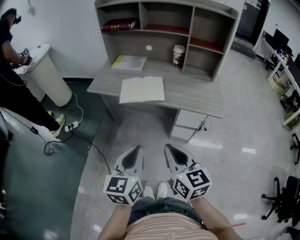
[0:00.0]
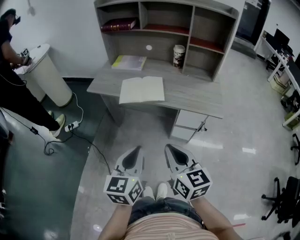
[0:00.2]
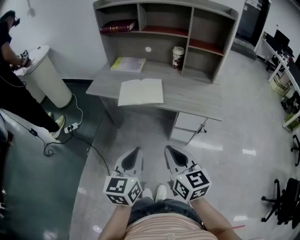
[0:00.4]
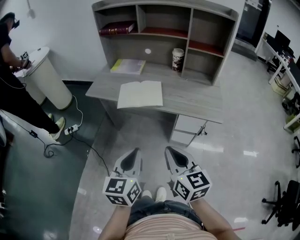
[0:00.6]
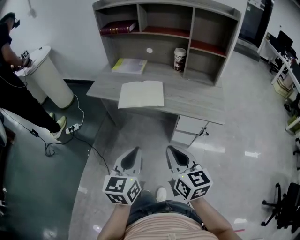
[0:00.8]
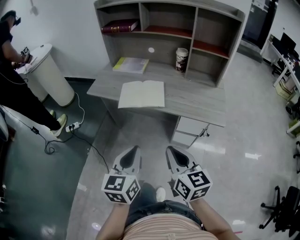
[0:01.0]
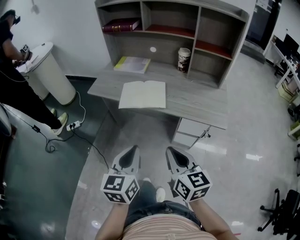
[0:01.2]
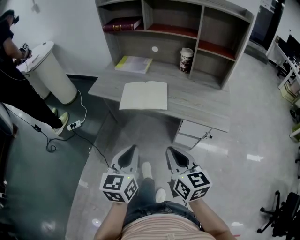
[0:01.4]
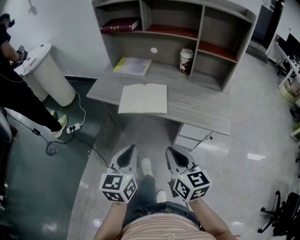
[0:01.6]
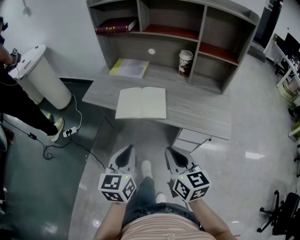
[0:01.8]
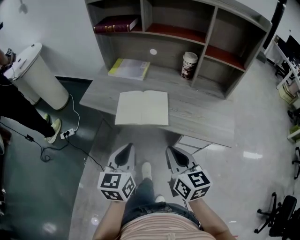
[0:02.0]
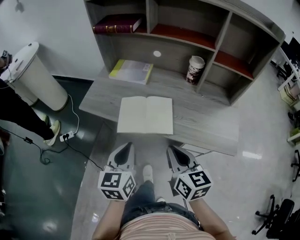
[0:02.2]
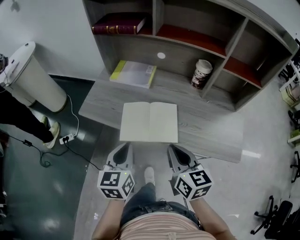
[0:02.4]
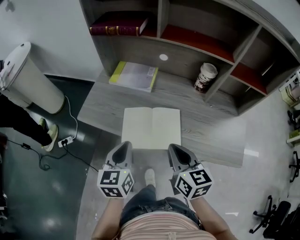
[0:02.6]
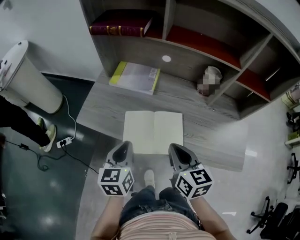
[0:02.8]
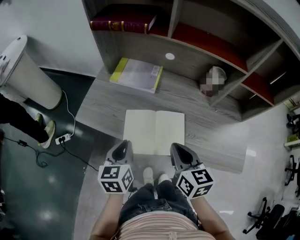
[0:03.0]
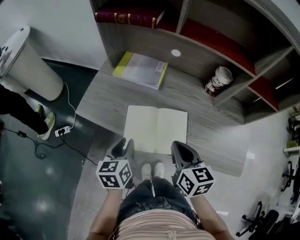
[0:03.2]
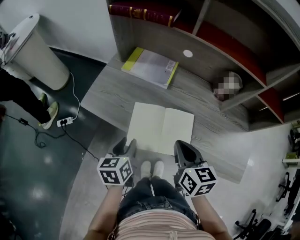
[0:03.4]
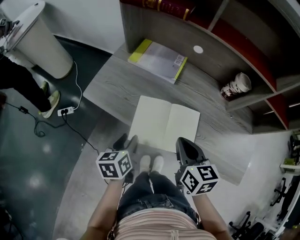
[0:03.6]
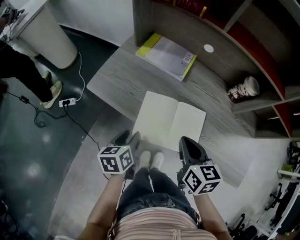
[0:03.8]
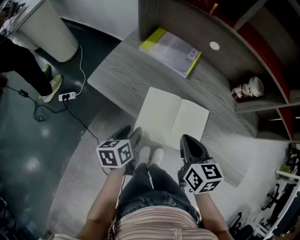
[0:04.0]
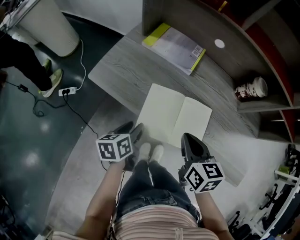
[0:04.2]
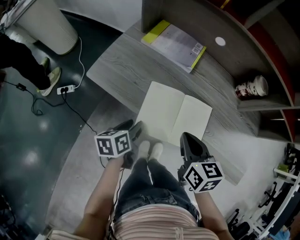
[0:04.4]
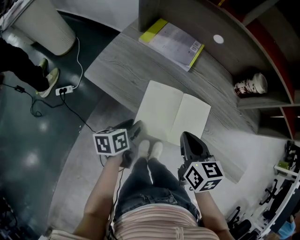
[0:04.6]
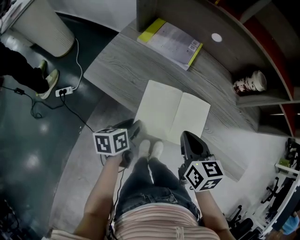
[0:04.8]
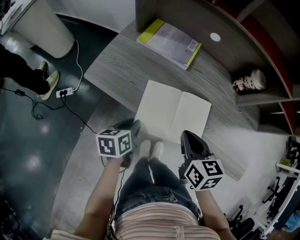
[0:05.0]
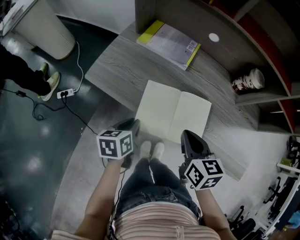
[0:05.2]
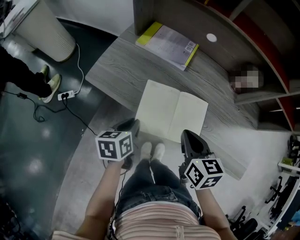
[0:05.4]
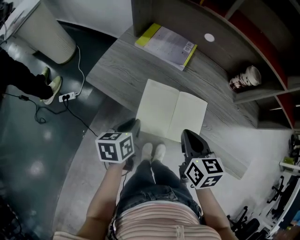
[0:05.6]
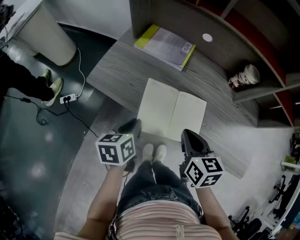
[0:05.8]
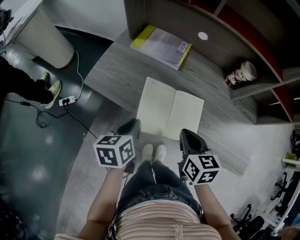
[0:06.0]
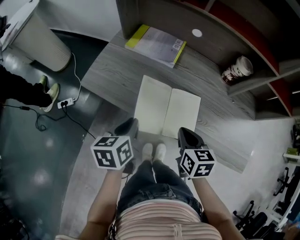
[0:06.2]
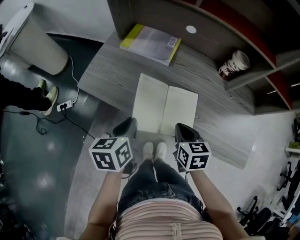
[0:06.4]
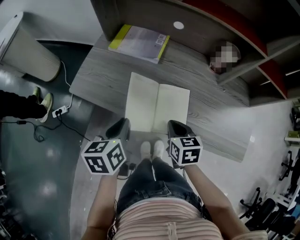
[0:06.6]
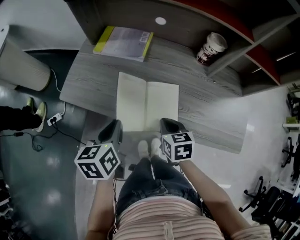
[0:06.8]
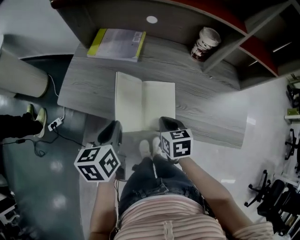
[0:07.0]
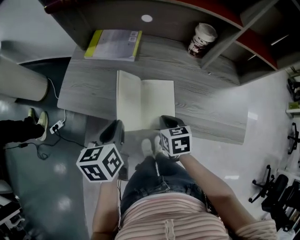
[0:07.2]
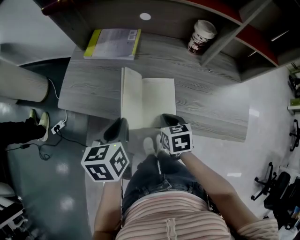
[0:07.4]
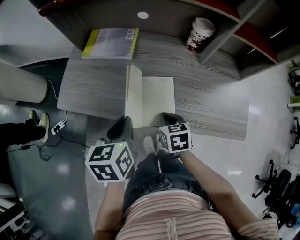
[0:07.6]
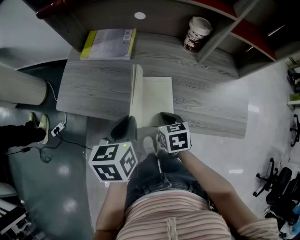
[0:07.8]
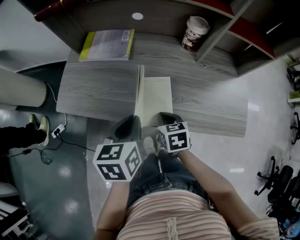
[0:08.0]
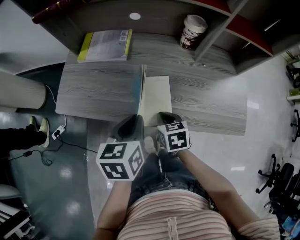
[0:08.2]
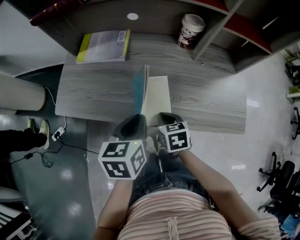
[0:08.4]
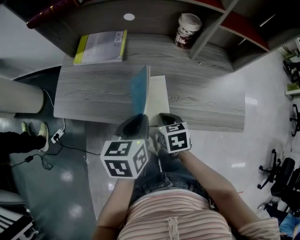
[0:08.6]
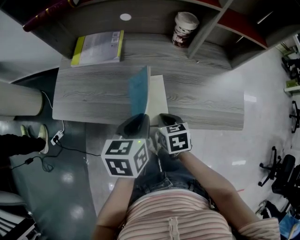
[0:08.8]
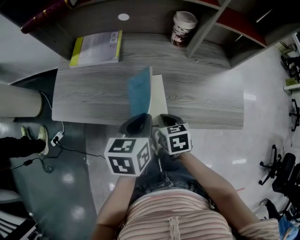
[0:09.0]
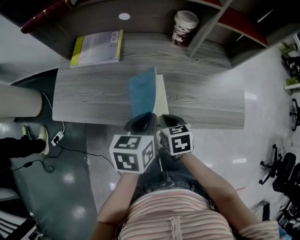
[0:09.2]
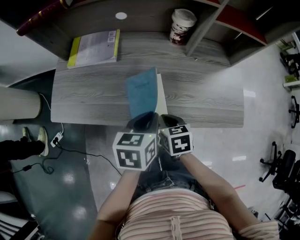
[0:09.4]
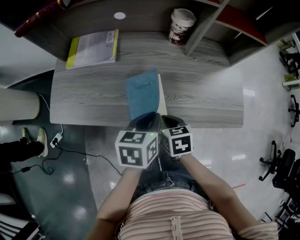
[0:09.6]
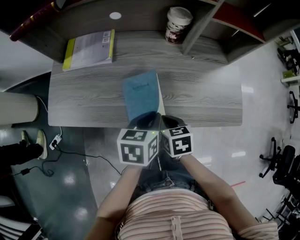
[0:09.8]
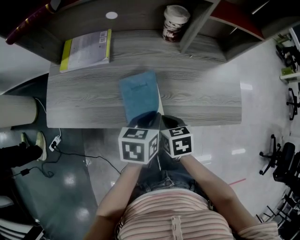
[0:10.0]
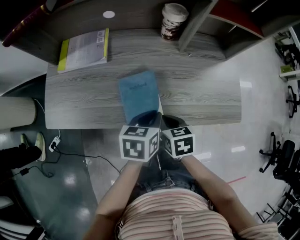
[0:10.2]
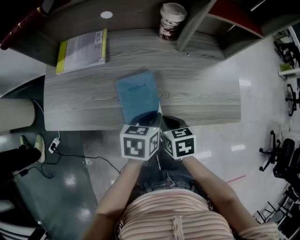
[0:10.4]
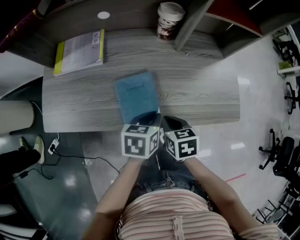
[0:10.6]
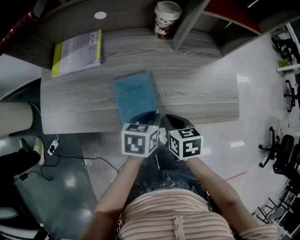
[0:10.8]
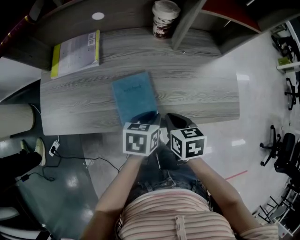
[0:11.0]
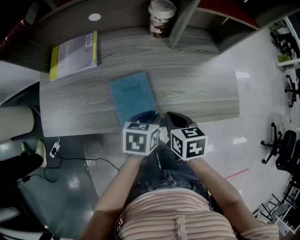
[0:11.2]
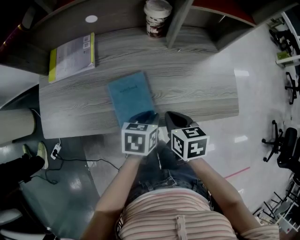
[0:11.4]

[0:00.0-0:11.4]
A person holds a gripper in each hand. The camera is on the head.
0:00.0 to 0:01.4: The two grippers go about 10 cm forward.
0:01.4 to 0:02.8: Both grippers move forward, some 30 cm.
0:02.8 to 0:04.2: The right gripper is displaced downward by about 5 cm, while the left gripper heads downward, covering about 15 cm, rotates roughly 40 degrees, and opens.
0:04.2 to 0:05.6: The left gripper closes up.
0:05.6 to 0:07.2: The left gripper is displaced upward and to the right by about 10 cm; the right gripper goes approximately 10 cm downward and to the right.
0:07.2 to 0:08.6: The left gripper is displaced to the right by approximately 10 cm.
0:08.6 to 0:10.0: The left gripper is displaced to the right and downward by some 10 cm.
0:10.0 to 0:11.4: The right gripper goes roughly 5 cm to the right; the left gripper goes about 5 cm downward.

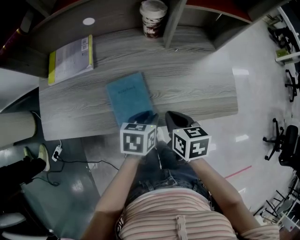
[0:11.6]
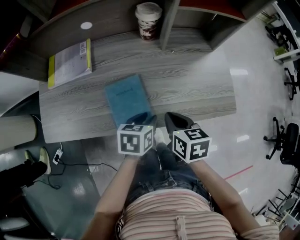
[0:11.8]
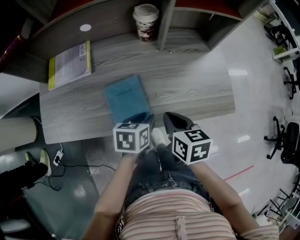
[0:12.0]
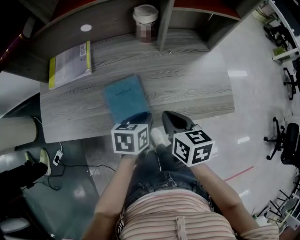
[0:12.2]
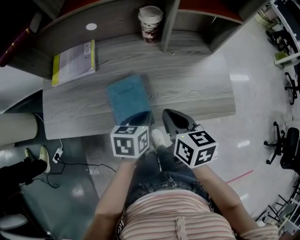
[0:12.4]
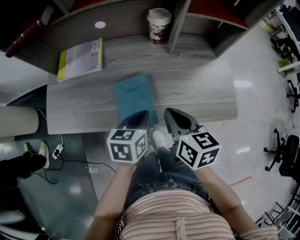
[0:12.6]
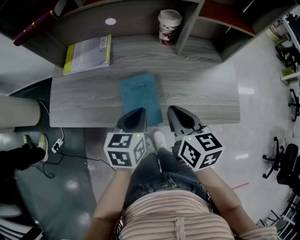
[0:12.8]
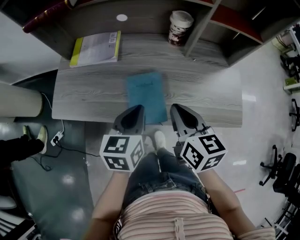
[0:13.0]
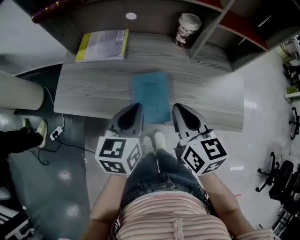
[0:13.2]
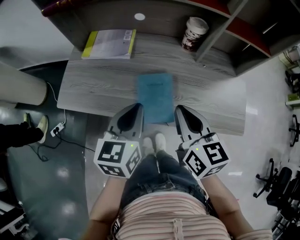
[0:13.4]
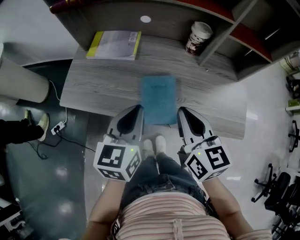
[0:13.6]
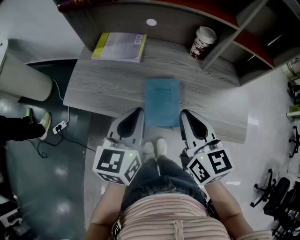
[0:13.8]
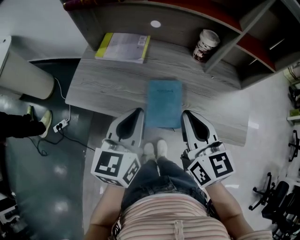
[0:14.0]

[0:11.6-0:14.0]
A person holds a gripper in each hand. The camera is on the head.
0:11.6 to 0:12.8: The right gripper moves upward, roughly 10 cm, and turns by about 20 degrees. The left gripper moves upward and to the left, about 10 cm, turns by roughly 20 degrees, and closes its fingers.
0:12.8 to 0:14.0: Both grippers travel together upward and to the left, some 15 cm. The left gripper swivels roughly 20 degrees, while the right gripper changes its angle by some 20 degrees.

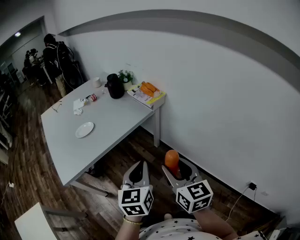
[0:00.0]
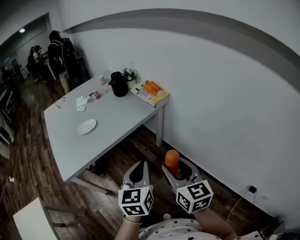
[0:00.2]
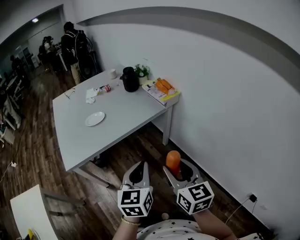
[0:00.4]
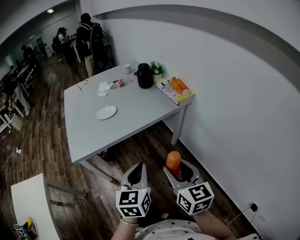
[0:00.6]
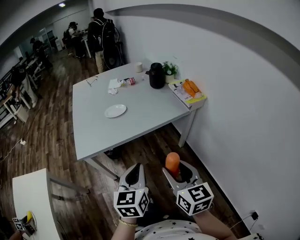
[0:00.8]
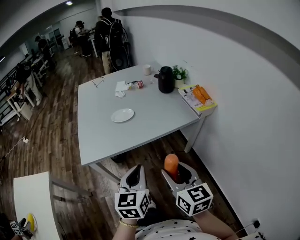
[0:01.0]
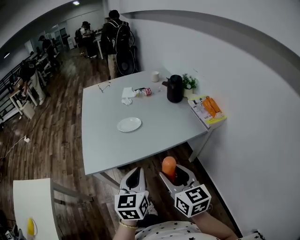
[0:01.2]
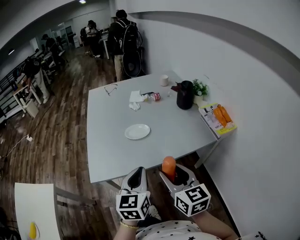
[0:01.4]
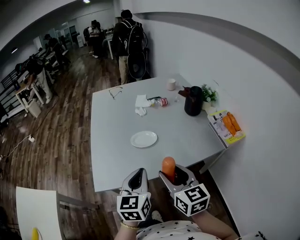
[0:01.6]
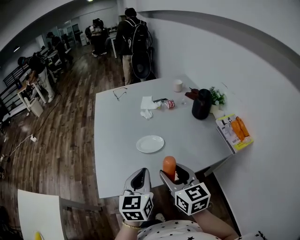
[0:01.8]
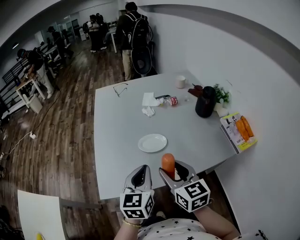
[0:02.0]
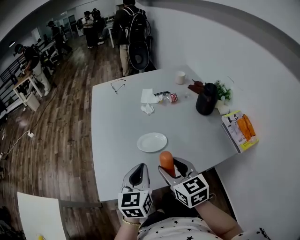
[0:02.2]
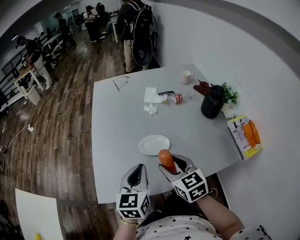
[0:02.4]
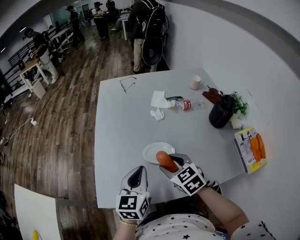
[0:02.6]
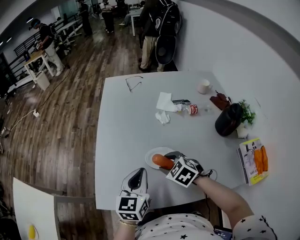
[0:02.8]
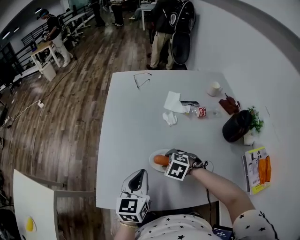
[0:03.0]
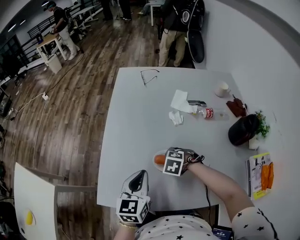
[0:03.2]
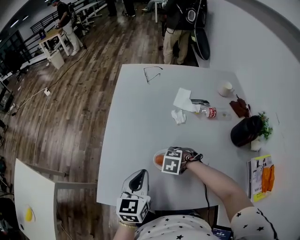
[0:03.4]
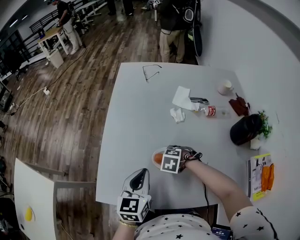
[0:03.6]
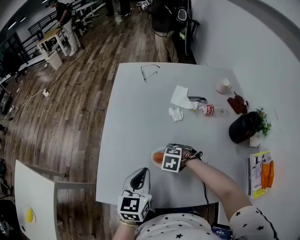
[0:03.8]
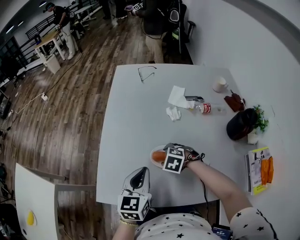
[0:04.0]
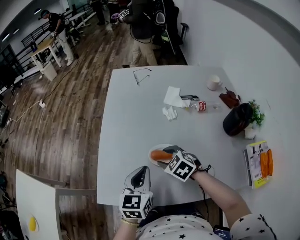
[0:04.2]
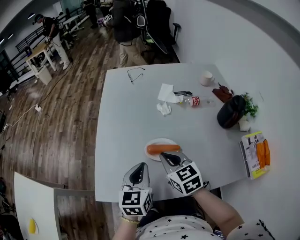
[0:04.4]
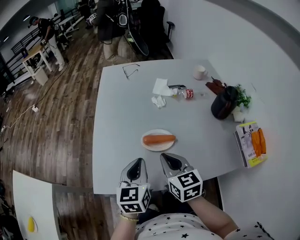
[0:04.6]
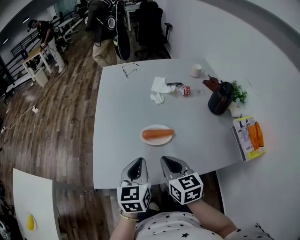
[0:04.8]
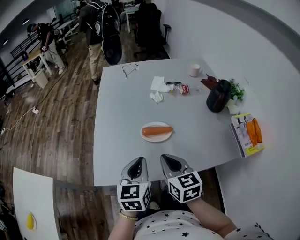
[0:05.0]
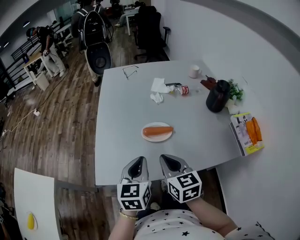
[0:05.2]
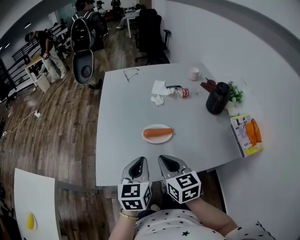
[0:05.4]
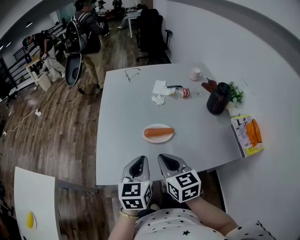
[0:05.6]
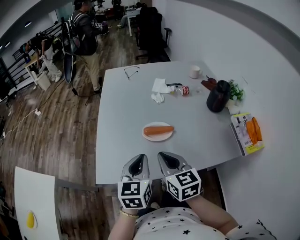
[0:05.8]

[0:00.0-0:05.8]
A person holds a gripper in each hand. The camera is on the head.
0:00.0 to 0:01.4: The right gripper changes place by roughly 30 cm, and turns by about 30 degrees; the left gripper shifts by some 30 cm, and swivels about 20 degrees.
0:01.4 to 0:02.8: The left gripper shifts about 25 cm forward. The right gripper goes about 35 cm forward and downward, and tips its fingers downward by about 40 degrees.
0:02.8 to 0:04.4: The right gripper shifts some 5 cm upward, changes its angle by about 30 degrees, and closes.
0:04.4 to 0:05.8: Both grippers move backward, roughly 10 cm.

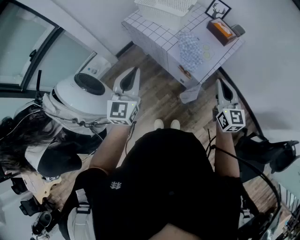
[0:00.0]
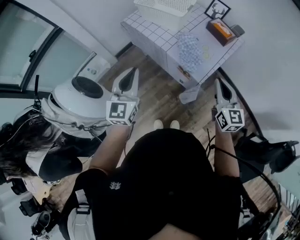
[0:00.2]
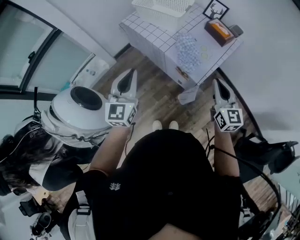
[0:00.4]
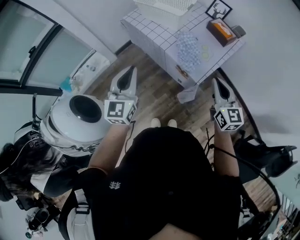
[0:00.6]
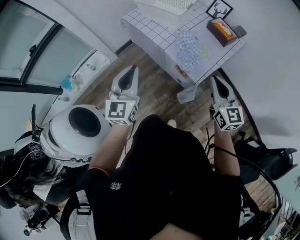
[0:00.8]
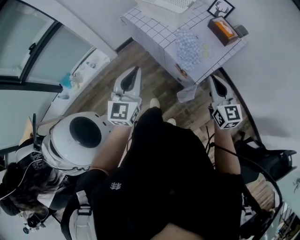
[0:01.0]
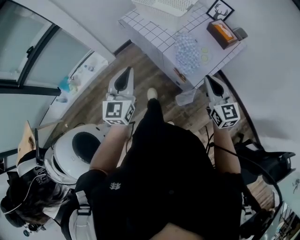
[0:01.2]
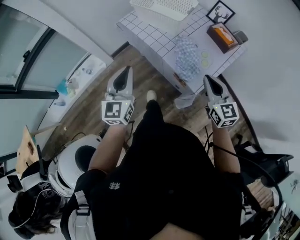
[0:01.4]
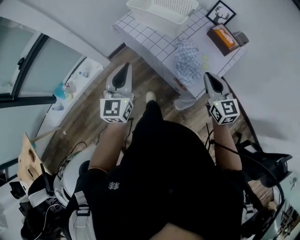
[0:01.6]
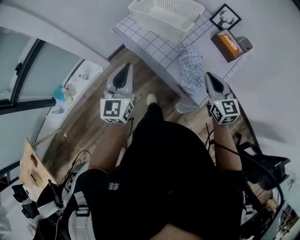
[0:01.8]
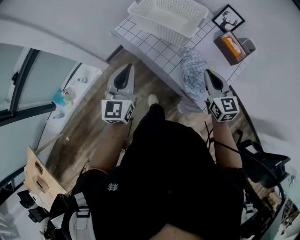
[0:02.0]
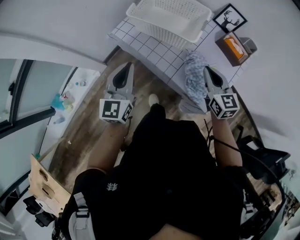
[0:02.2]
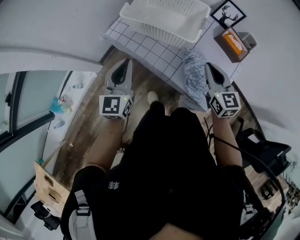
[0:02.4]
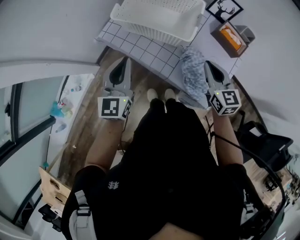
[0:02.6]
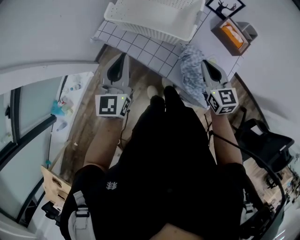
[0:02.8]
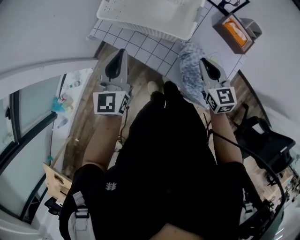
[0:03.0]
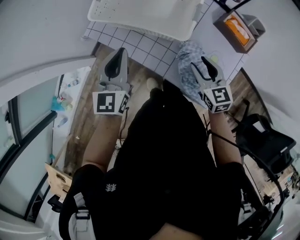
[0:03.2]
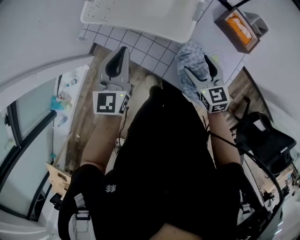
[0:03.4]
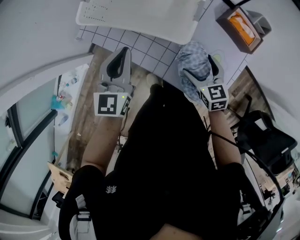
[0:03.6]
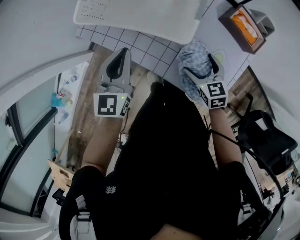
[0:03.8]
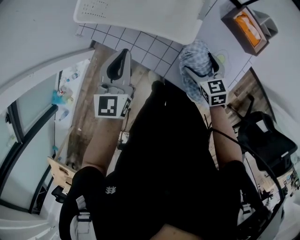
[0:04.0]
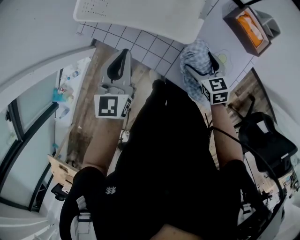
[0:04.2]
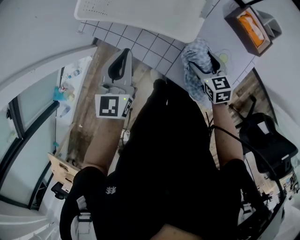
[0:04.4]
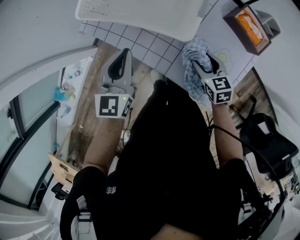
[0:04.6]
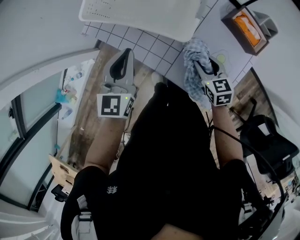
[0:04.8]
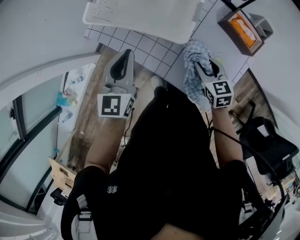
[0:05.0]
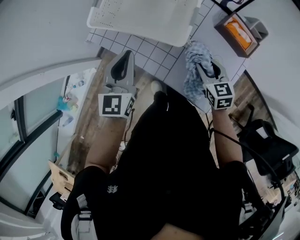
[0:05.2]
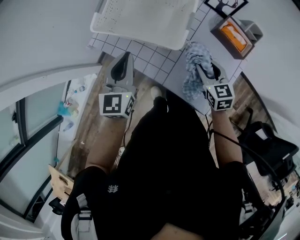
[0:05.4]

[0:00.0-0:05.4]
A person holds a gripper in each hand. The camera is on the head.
0:00.0 to 0:01.4: Both grippers move forward, about 10 cm.
0:01.4 to 0:02.8: The two grippers go roughly 30 cm forward.
0:02.8 to 0:04.0: The left gripper goes roughly 15 cm downward, to the right and forward; the right gripper heads downward, covering approximately 20 cm, turns by some 20 degrees, and opens up.
0:04.0 to 0:05.4: Both grippers move upward, roughly 10 cm. The right gripper closes.
